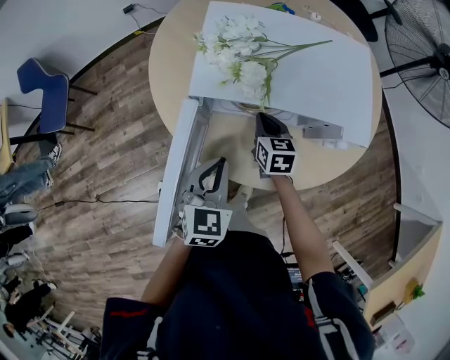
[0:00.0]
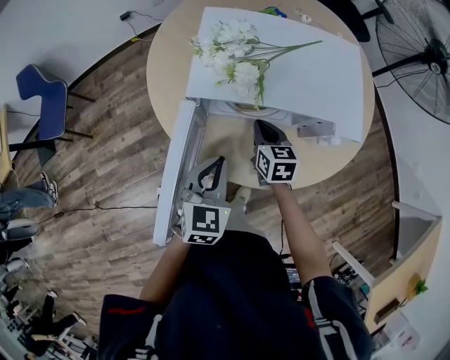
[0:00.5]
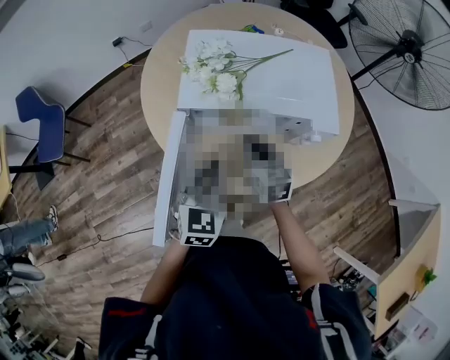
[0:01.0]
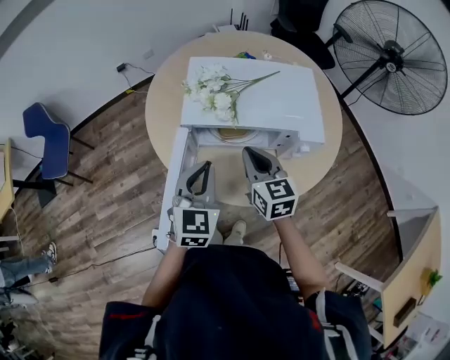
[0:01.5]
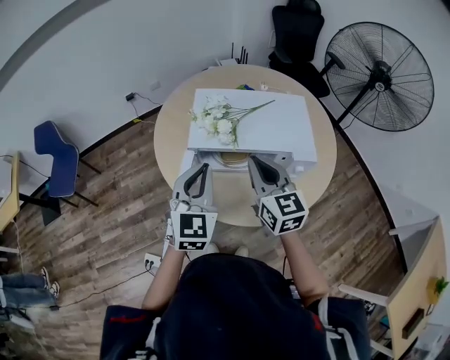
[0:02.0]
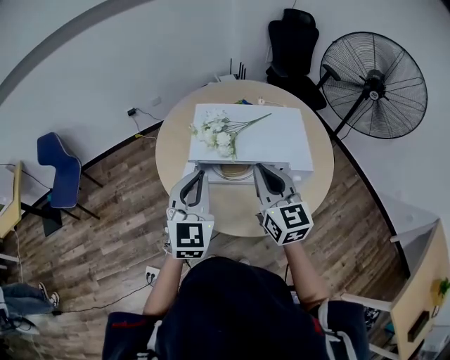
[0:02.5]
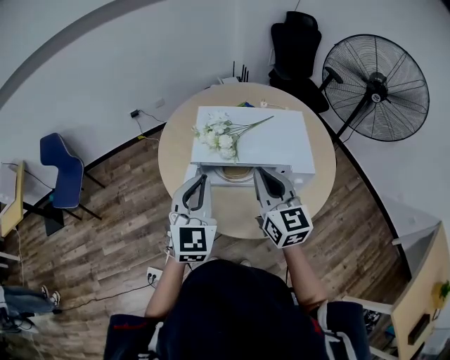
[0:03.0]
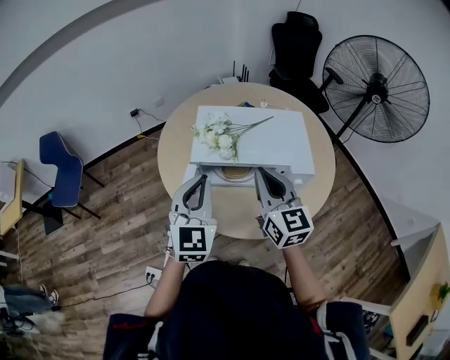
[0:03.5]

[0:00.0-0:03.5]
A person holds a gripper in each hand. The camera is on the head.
0:00.0 to 0:02.0: The grippers both shift upward by roughly 25 cm. The right gripper changes its angle by some 30 degrees, while the left gripper swivels about 30 degrees.
0:02.0 to 0:03.5: There are only small adjustments of the grippers.

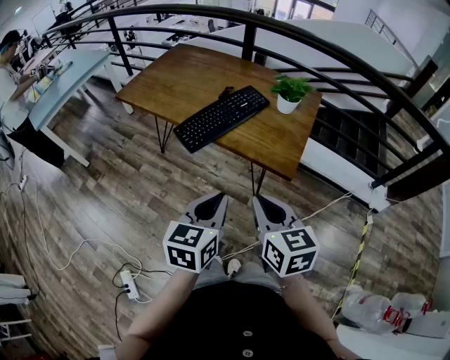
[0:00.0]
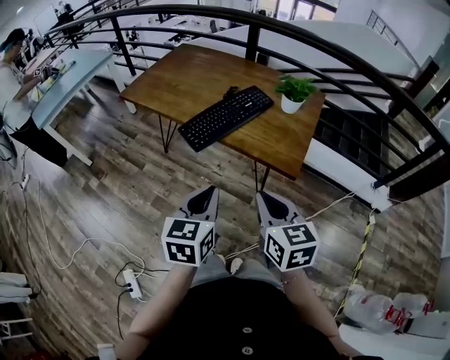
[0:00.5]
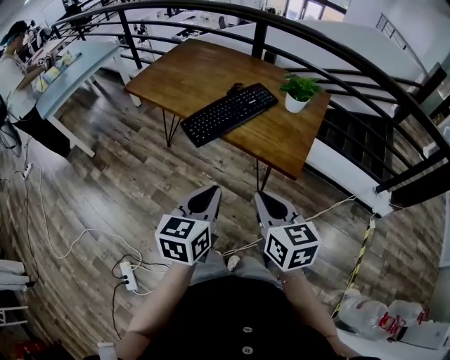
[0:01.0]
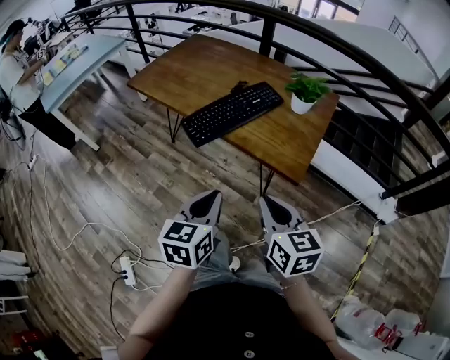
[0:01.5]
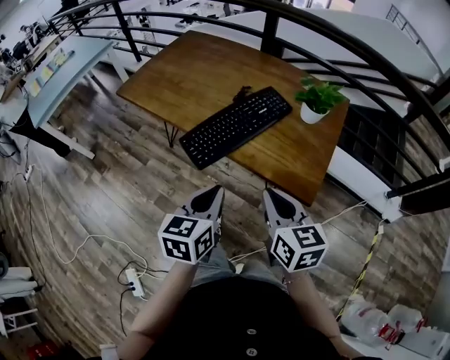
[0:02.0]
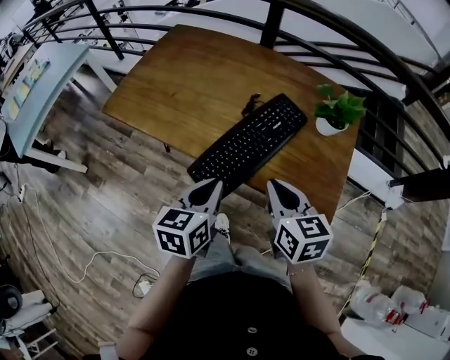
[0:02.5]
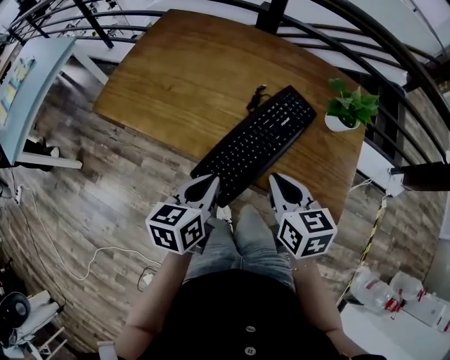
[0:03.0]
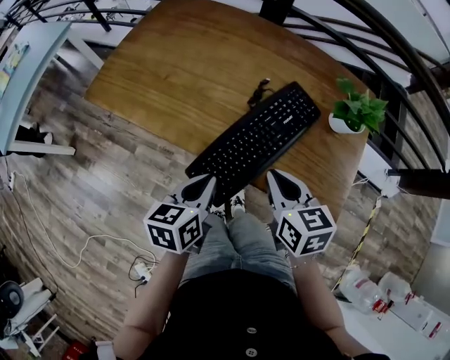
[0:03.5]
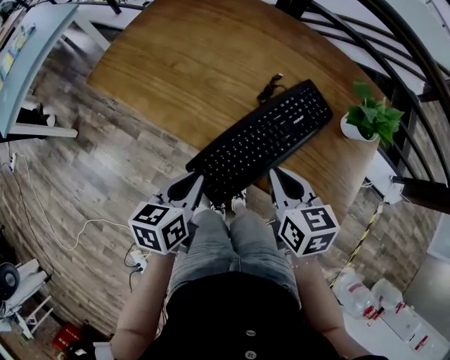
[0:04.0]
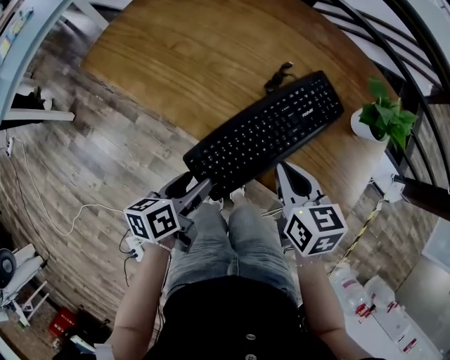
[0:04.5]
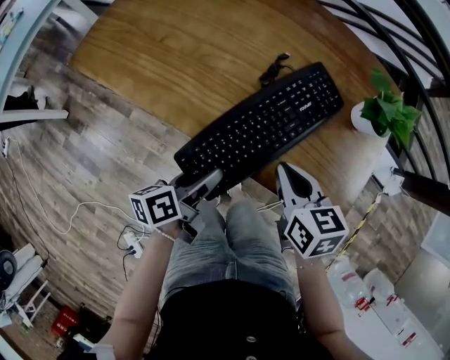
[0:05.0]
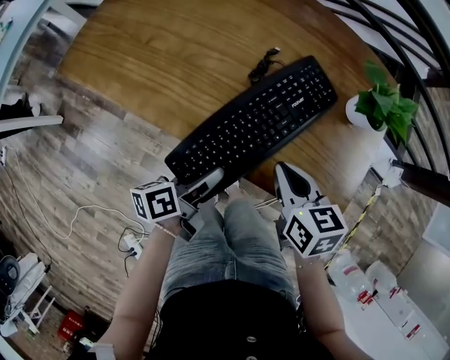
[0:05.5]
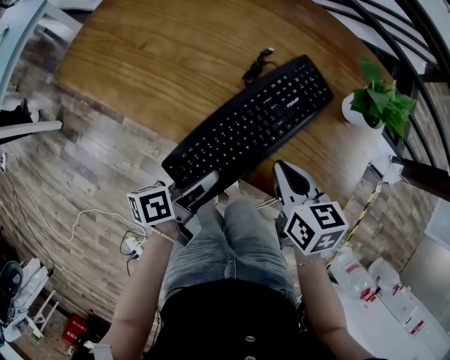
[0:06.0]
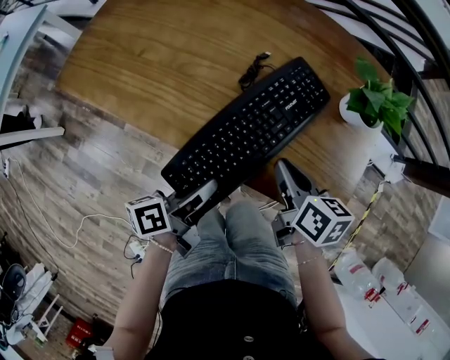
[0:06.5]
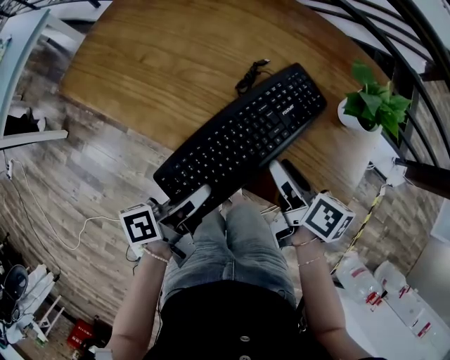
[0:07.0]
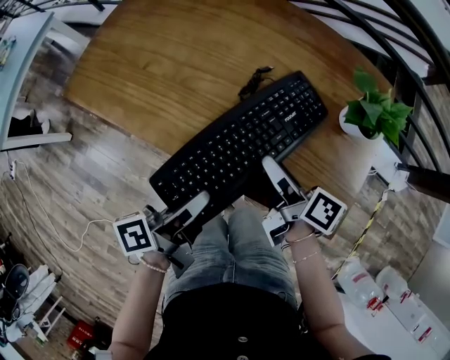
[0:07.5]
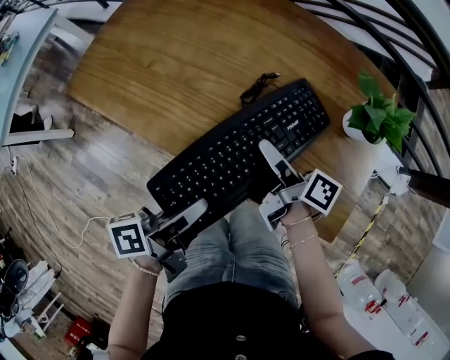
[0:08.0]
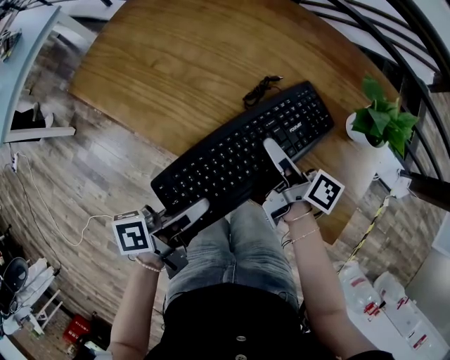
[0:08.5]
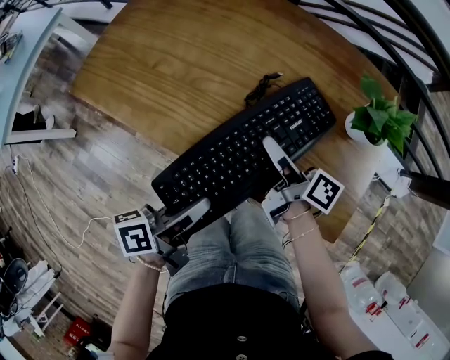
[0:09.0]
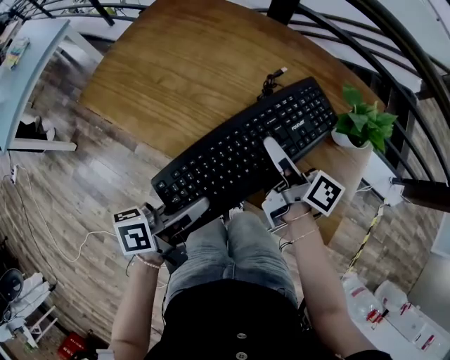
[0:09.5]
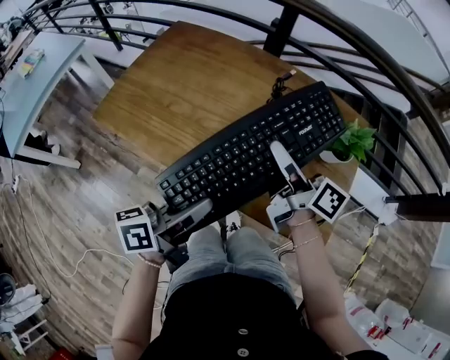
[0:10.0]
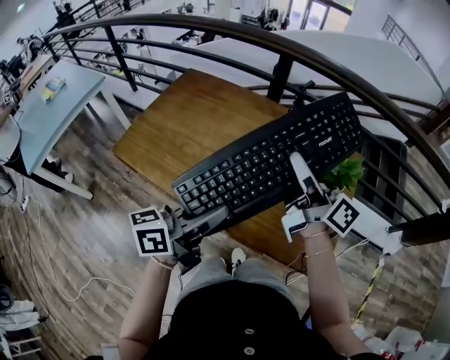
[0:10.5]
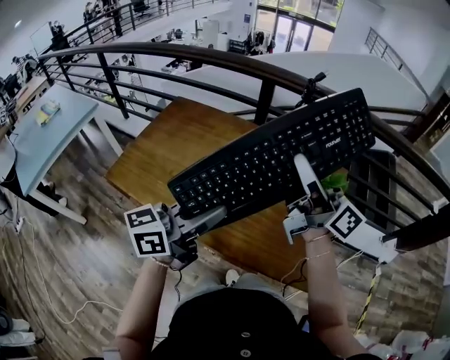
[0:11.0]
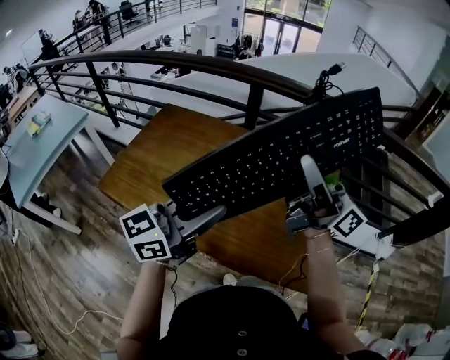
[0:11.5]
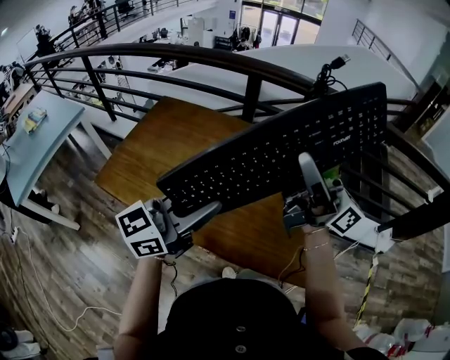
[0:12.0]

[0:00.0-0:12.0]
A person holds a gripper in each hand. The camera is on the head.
0:00.0 to 0:02.0: The two grippers go approximately 15 cm forward.
0:02.0 to 0:04.0: The left gripper is displaced forward, to the left and downward by about 25 cm. The right gripper shifts approximately 20 cm forward and to the left.
0:04.0 to 0:06.0: The left gripper shifts about 10 cm downward and to the right, turns by some 40 degrees, and opens its fingers. The right gripper changes place by about 5 cm.
0:06.0 to 0:08.0: The right gripper heads forward, covering some 10 cm, twists approximately 50 degrees clockwise, seen from behind, and opens. The left gripper goes approximately 10 cm upward, and closes its fingers.
0:08.0 to 0:10.0: The right gripper rotates approximately 20 degrees, and closes; the left gripper heads downward, covering approximately 10 cm, and changes its angle by approximately 20 degrees.
0:10.0 to 0:12.0: The left gripper travels upward by about 15 cm, and twists roughly 50 degrees clockwise, seen from behind; the right gripper is displaced upward by approximately 25 cm, and tips its fingers upward by some 40 degrees.

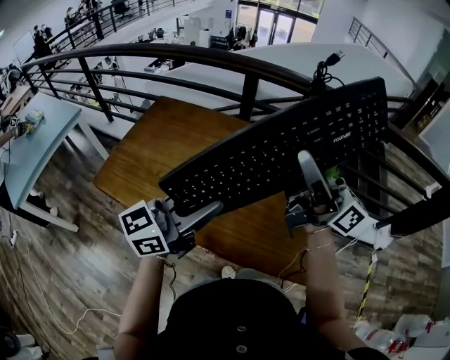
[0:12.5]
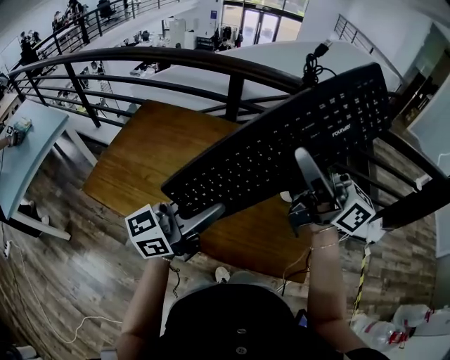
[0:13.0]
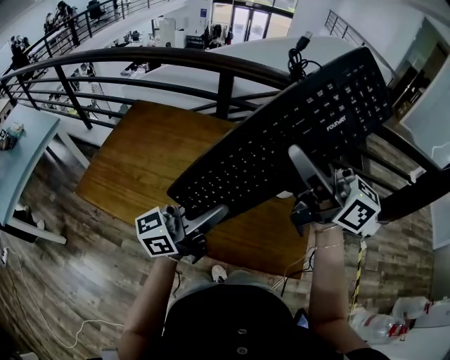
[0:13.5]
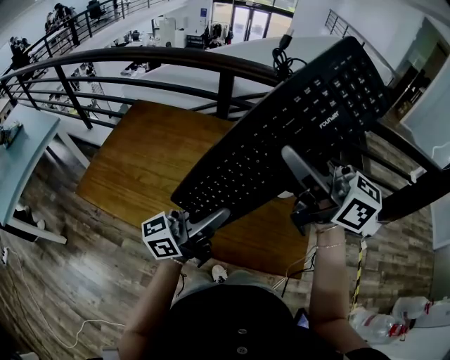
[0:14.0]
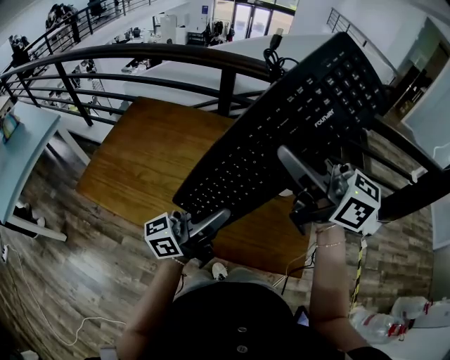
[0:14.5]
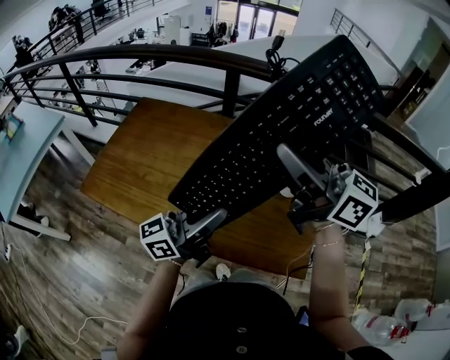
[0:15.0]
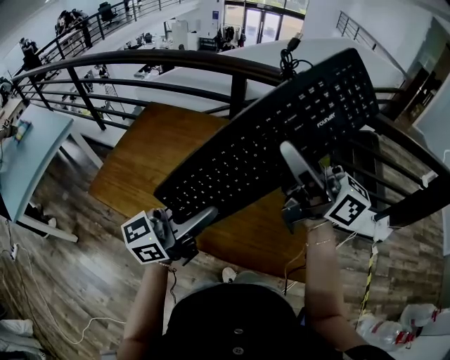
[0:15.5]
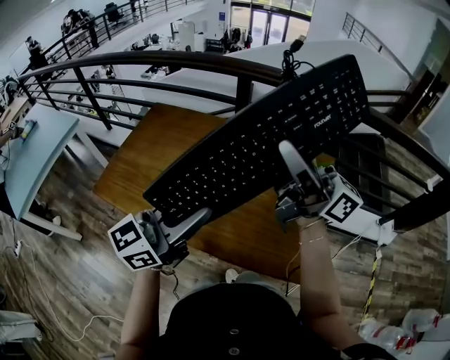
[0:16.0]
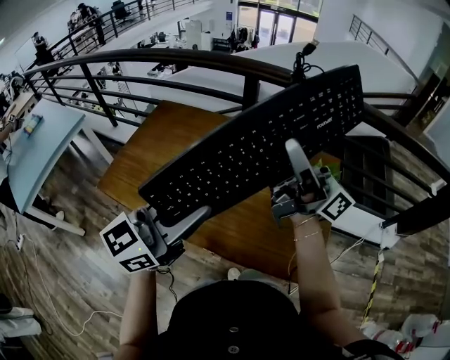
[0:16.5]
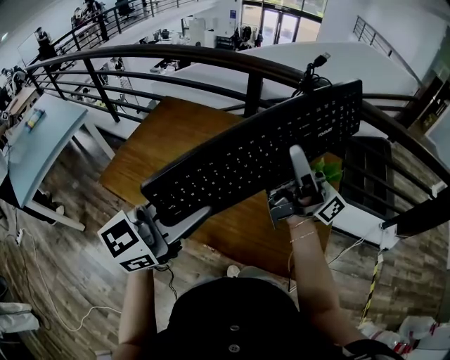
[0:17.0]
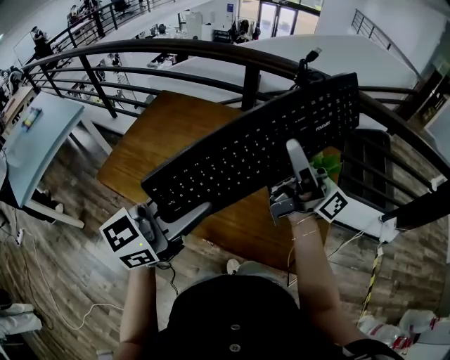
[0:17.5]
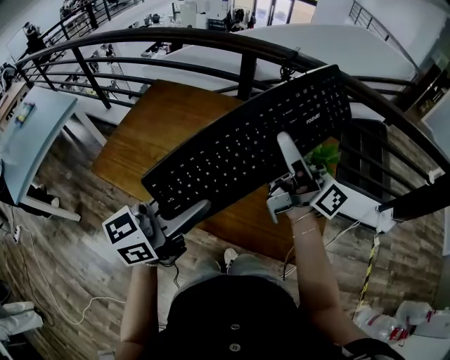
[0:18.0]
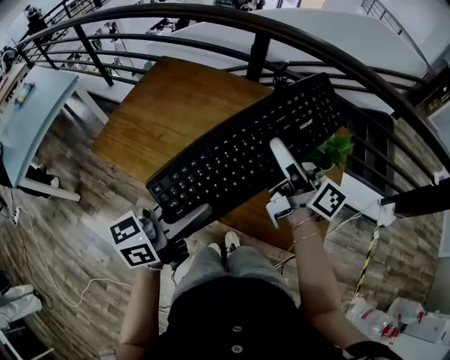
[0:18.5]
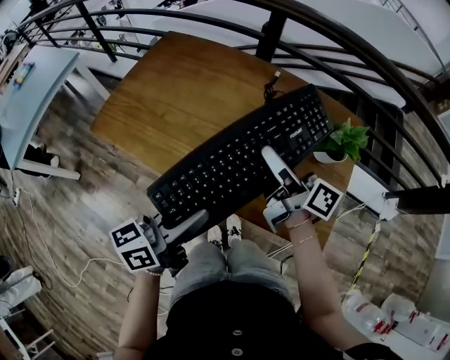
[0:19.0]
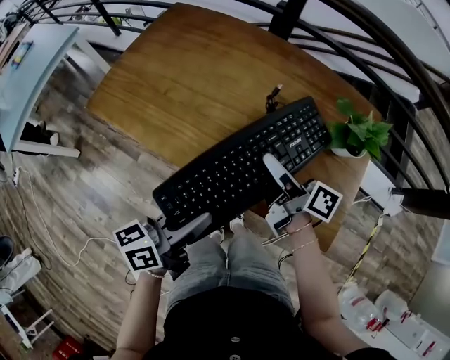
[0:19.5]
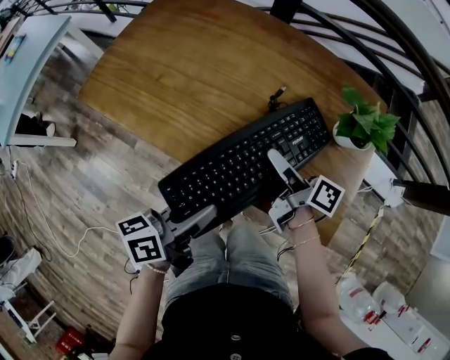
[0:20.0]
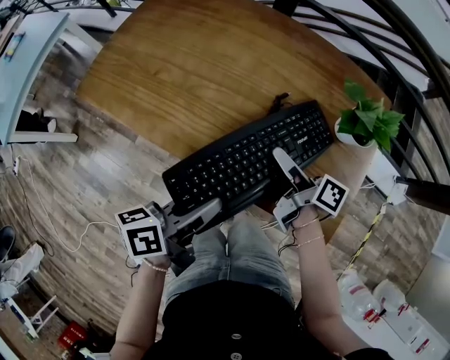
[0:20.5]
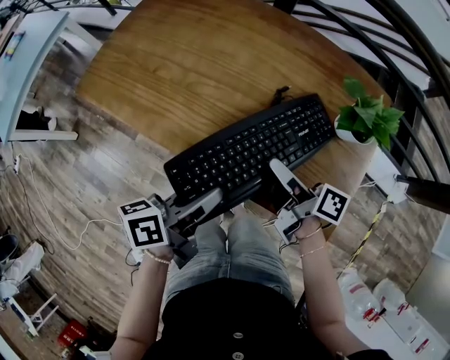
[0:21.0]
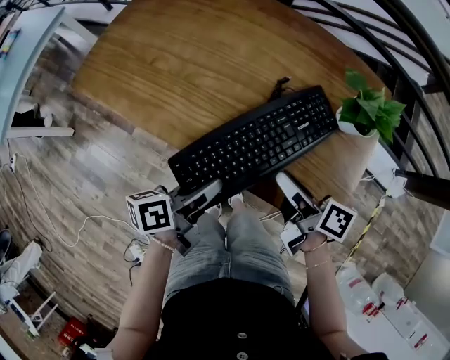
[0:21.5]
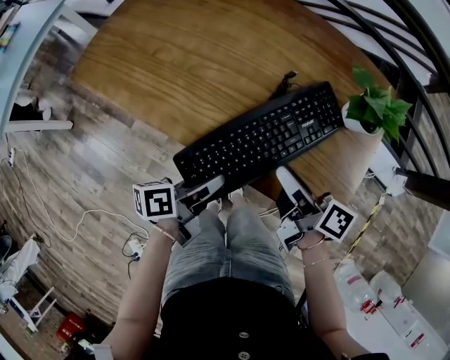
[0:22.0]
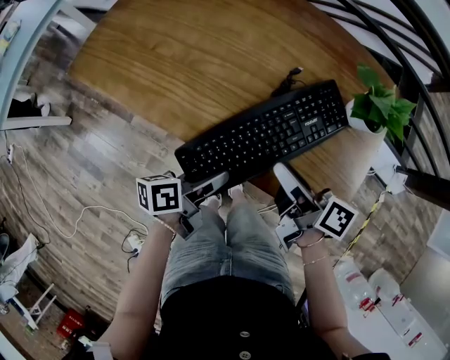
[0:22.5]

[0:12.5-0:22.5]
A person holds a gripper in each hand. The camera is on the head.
0:12.5 to 0:14.5: The left gripper heads to the right, covering some 5 cm, and rotates approximately 30 degrees; the right gripper turns by roughly 30 degrees.
0:14.5 to 0:16.5: The left gripper goes about 10 cm upward and to the left, and turns by approximately 40 degrees. Meanwhile the right gripper angles its fingers upward, by roughly 30 degrees.
0:16.5 to 0:18.5: The left gripper moves downward, approximately 10 cm, and swivels about 30 degrees. The right gripper moves downward, about 15 cm, and swivels about 30 degrees.
0:18.5 to 0:20.5: The left gripper shifts roughly 15 cm downward, and turns by some 40 degrees. The right gripper shifts about 25 cm downward, and angles its fingers downward, by about 30 degrees.
0:20.5 to 0:22.5: The left gripper travels downward by roughly 10 cm, while the right gripper is displaced backward by some 5 cm.

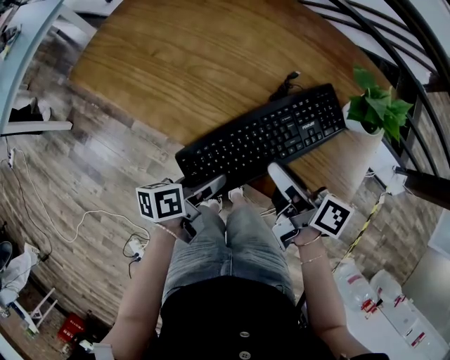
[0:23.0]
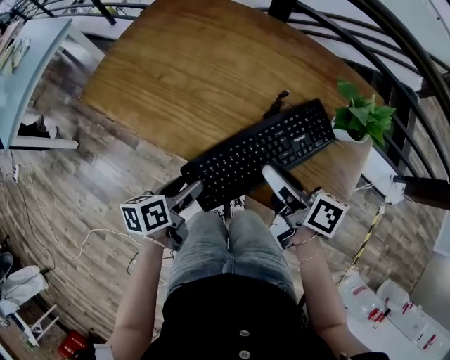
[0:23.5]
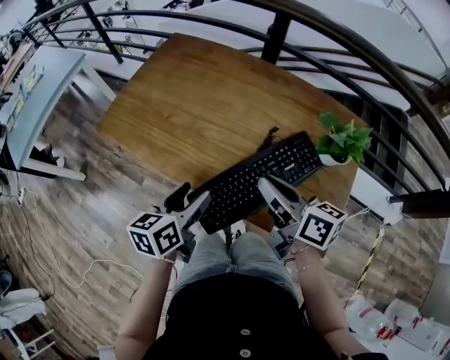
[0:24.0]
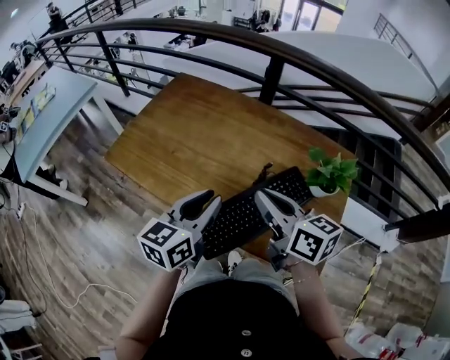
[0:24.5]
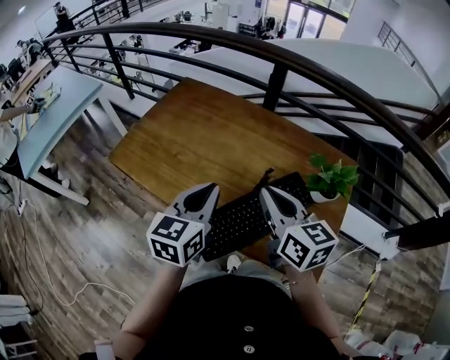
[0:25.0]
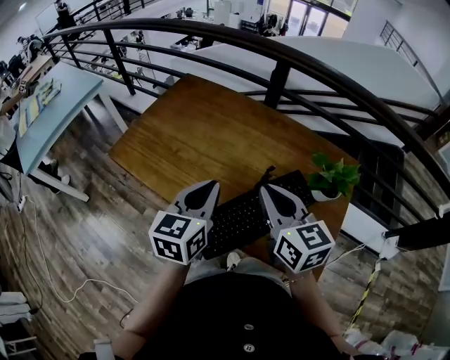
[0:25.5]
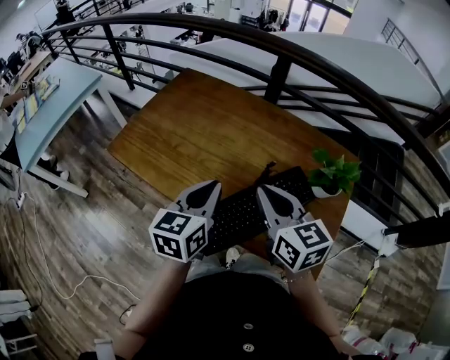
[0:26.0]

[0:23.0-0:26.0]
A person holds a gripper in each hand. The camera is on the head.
0:23.0 to 0:24.5: The left gripper shifts about 25 cm upward, rotates around the line of its fingers by approximately 50 degrees, clockwise from behind, and closes. The right gripper moves upward, roughly 15 cm, turns by about 40 degrees, and closes up.
0:24.5 to 0:26.0: The right gripper changes its angle by some 20 degrees.
